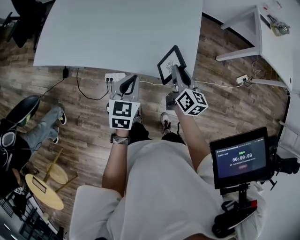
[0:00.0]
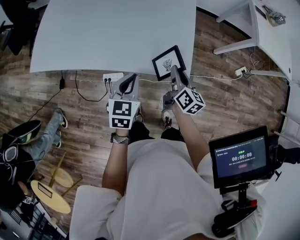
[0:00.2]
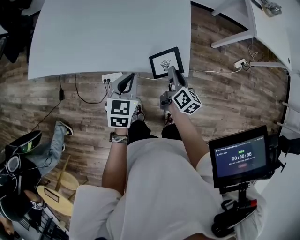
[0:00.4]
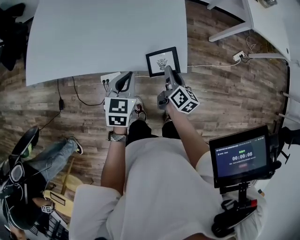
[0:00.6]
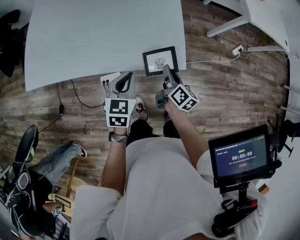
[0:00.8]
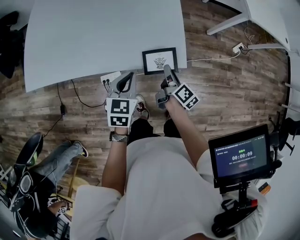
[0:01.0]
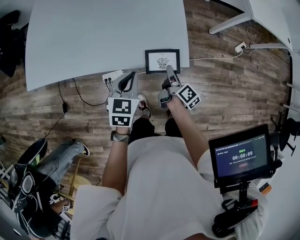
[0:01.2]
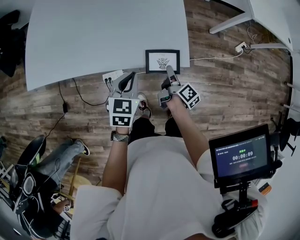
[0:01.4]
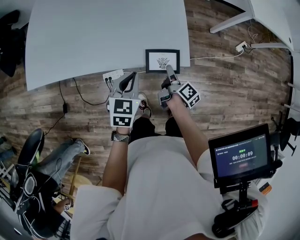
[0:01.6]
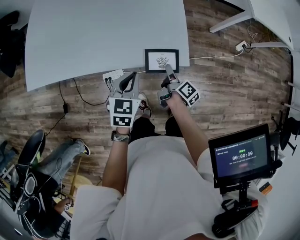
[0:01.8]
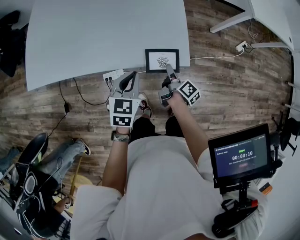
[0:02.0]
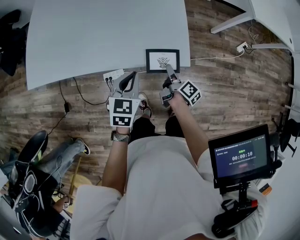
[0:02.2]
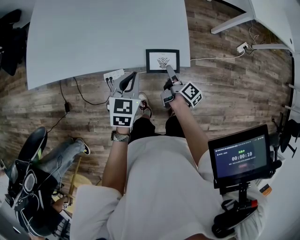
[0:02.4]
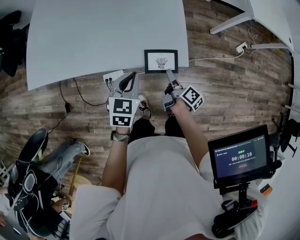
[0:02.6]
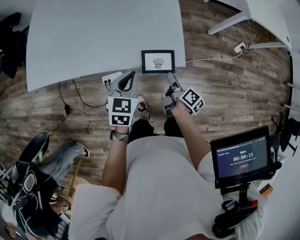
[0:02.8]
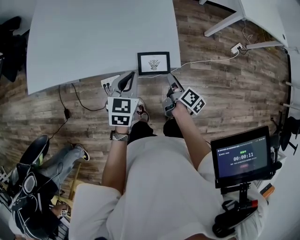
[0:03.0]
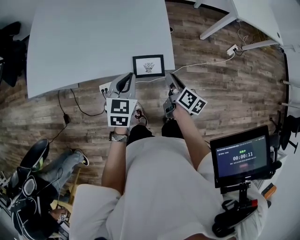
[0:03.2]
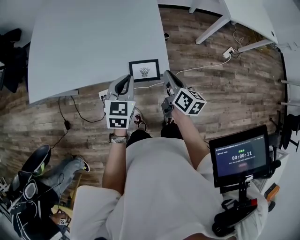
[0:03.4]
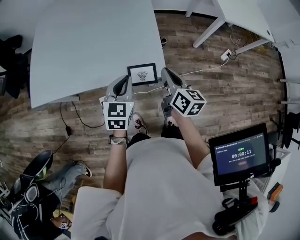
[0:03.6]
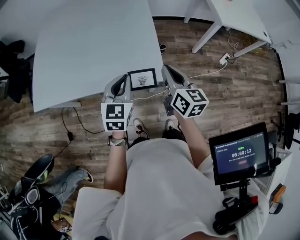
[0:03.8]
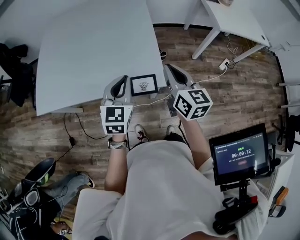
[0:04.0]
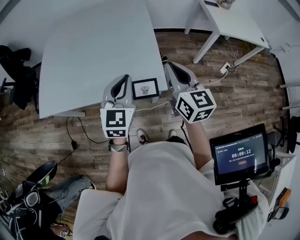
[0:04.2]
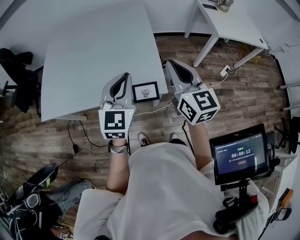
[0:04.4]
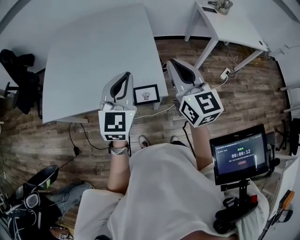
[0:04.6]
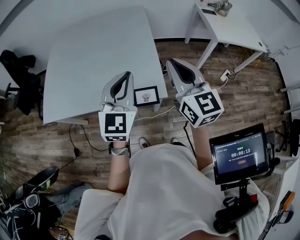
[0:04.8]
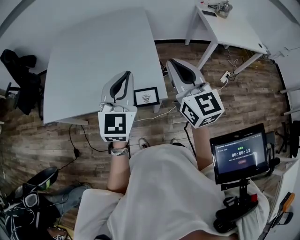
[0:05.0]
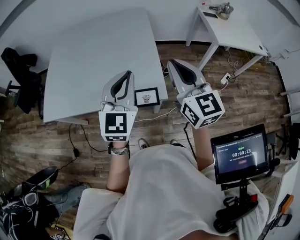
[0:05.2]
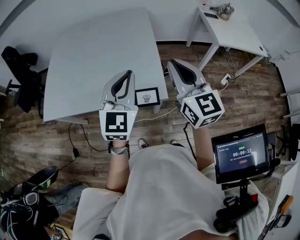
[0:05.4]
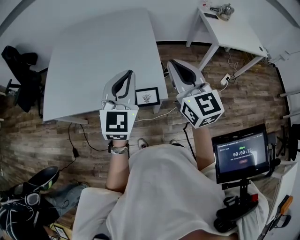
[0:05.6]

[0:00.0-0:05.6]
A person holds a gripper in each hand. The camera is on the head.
0:00.0 to 0:01.4: The right gripper shifts approximately 15 cm downward and backward, and rotates around the line of its fingers by roughly 50 degrees, clockwise from behind.
0:01.4 to 0:02.8: The right gripper opens.
0:02.8 to 0:04.2: The right gripper moves upward, some 35 cm, twists roughly 60 degrees counterclockwise, seen from behind, and closes. Meanwhile the left gripper goes some 20 cm upward, and swivels about 30 degrees.
0:04.2 to 0:05.6: Both grippers travel together upward, about 5 cm.

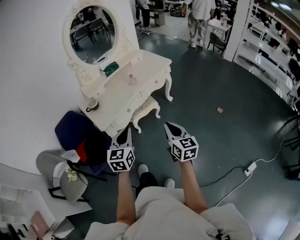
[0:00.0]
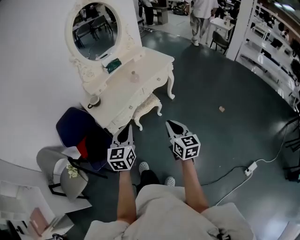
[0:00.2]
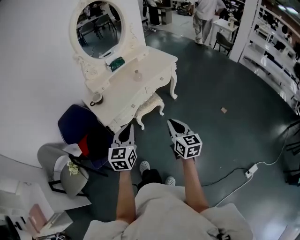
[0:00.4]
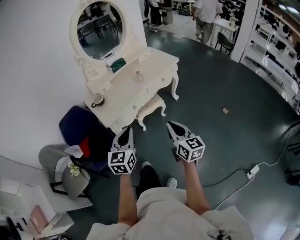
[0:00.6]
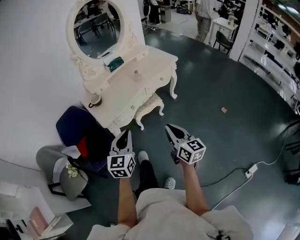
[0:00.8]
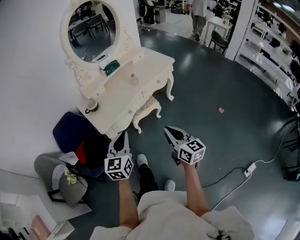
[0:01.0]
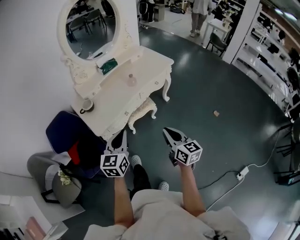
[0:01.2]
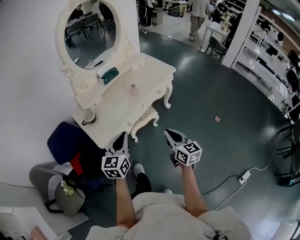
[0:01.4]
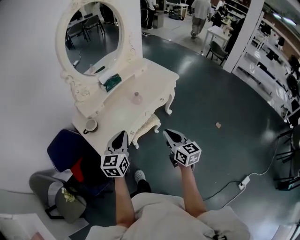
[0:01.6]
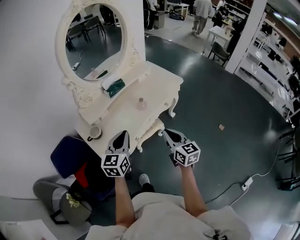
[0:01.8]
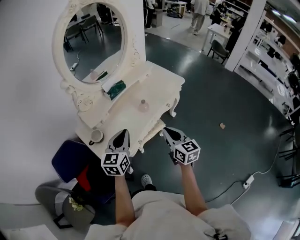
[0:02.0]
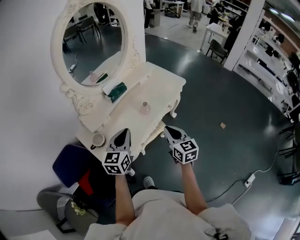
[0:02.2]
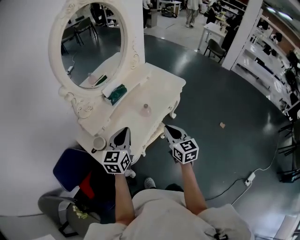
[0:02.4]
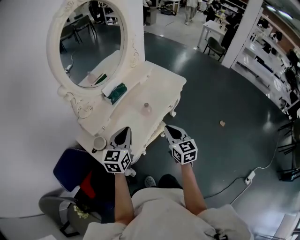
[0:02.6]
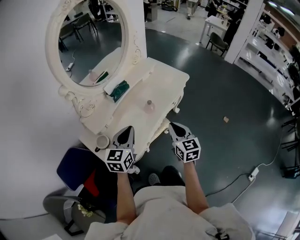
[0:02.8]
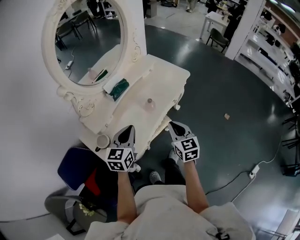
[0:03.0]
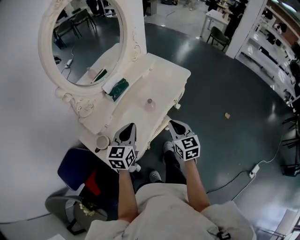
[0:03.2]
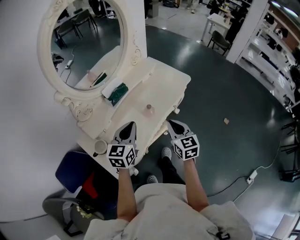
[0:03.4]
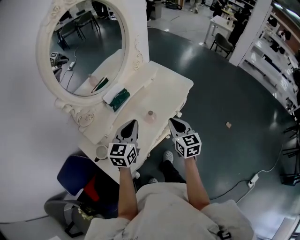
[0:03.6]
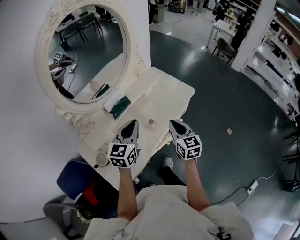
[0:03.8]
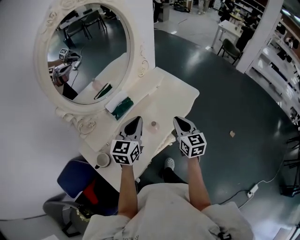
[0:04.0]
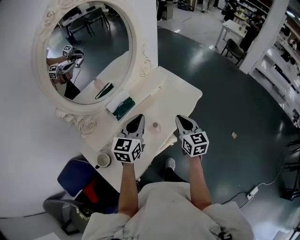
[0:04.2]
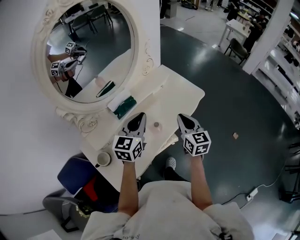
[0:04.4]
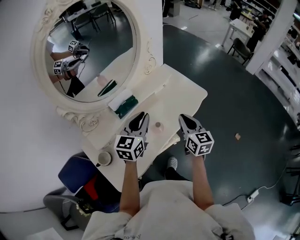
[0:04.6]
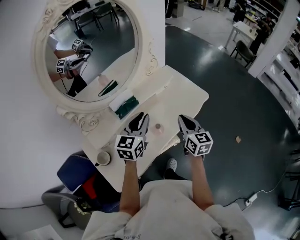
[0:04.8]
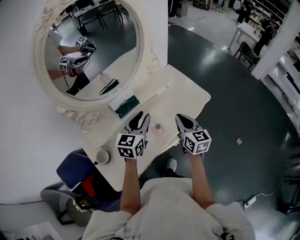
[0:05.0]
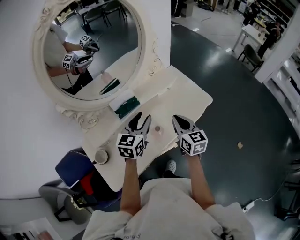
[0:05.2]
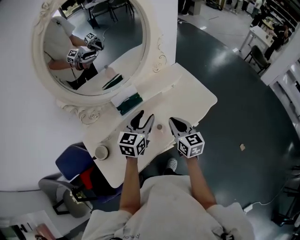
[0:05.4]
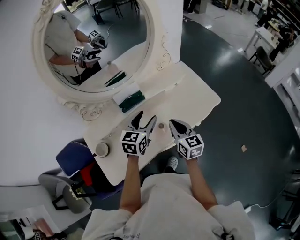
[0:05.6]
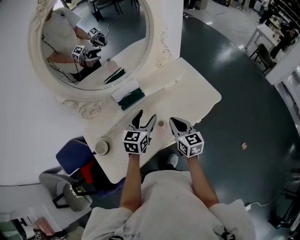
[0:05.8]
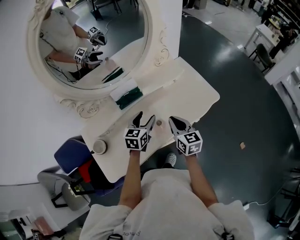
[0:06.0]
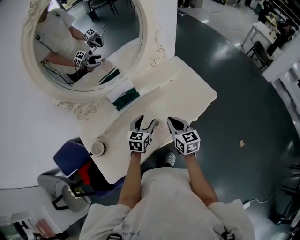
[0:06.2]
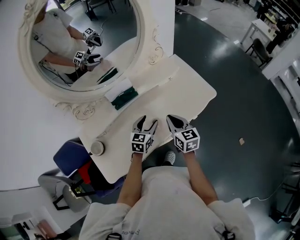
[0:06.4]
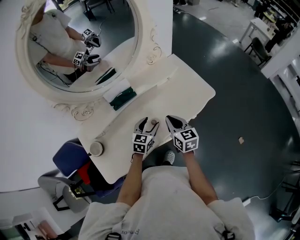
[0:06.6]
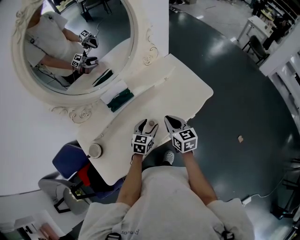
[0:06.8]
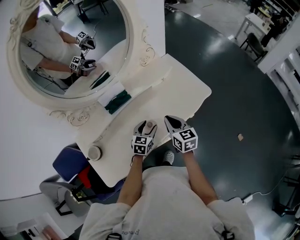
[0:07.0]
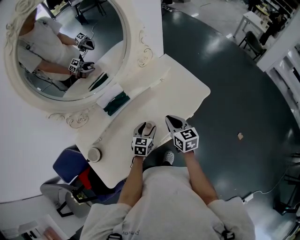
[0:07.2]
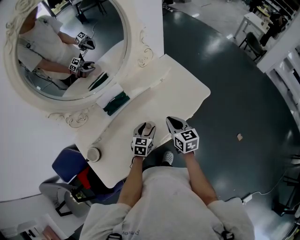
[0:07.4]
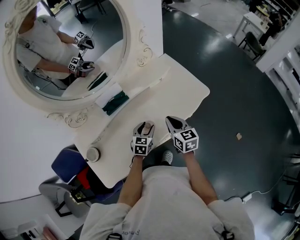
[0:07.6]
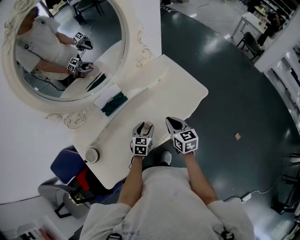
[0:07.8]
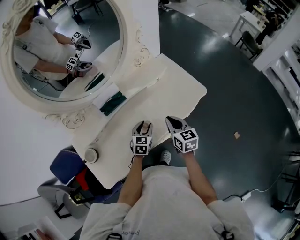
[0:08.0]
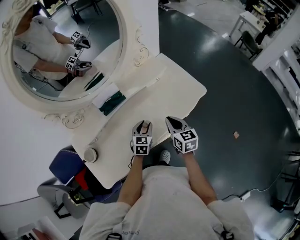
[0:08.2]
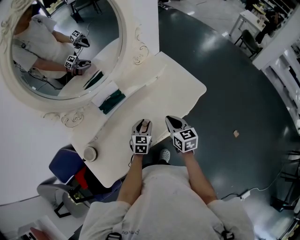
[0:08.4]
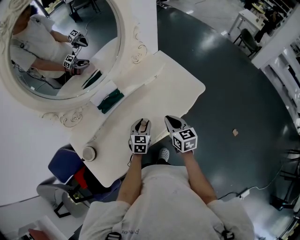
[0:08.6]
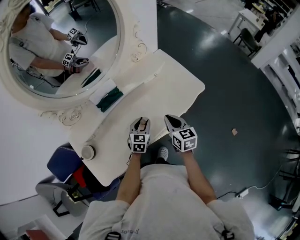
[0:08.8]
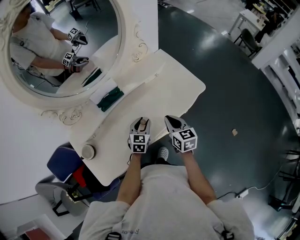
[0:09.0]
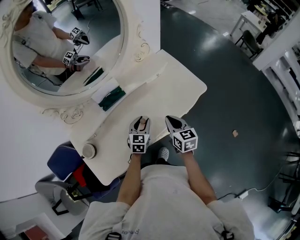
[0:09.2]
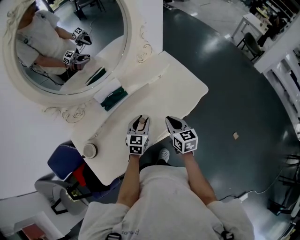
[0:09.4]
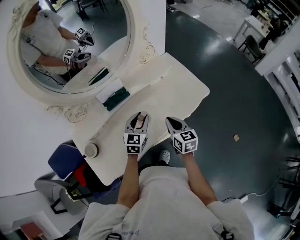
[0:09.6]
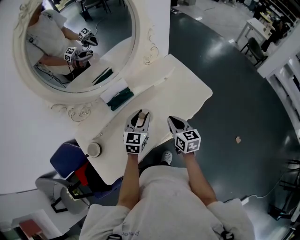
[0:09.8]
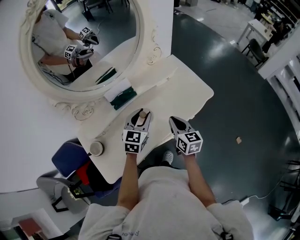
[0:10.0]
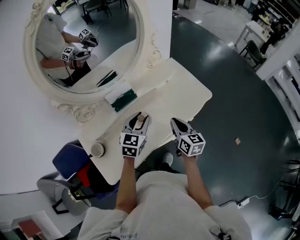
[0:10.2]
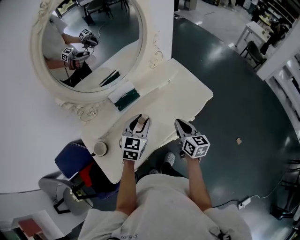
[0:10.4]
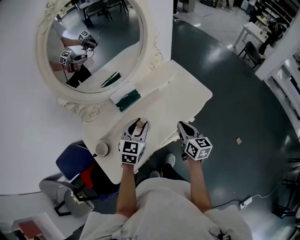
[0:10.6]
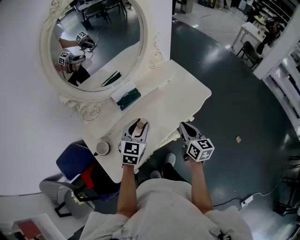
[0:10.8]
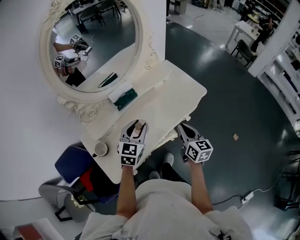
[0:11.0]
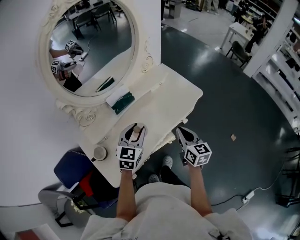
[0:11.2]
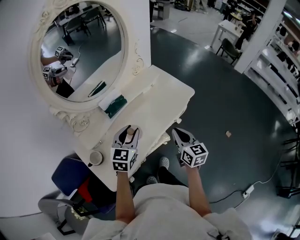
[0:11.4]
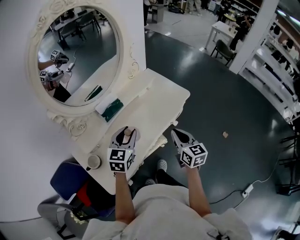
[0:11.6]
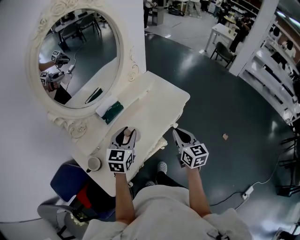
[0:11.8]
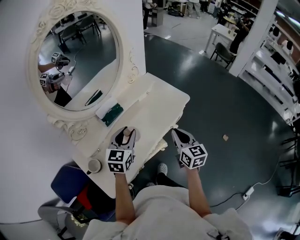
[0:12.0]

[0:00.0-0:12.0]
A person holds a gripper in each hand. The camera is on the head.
0:00.0 to 0:01.6: Both grippers move forward, roughly 20 cm.
0:01.6 to 0:03.0: The right gripper travels forward and to the left by roughly 15 cm, and turns by roughly 20 degrees; the left gripper shifts approximately 15 cm forward.
0:03.0 to 0:04.4: The two grippers go roughly 20 cm forward.
0:04.4 to 0:06.0: The right gripper shifts about 10 cm downward. The left gripper heads downward, covering some 15 cm, changes its angle by about 20 degrees, and opens up.
0:06.0 to 0:07.6: The left gripper moves downward and to the right, some 15 cm; the right gripper ends up some 5 cm from where it was.
0:07.6 to 0:09.0: The grippers stay close to where they were, moving slightly.
0:09.0 to 0:10.4: The left gripper travels upward by about 20 cm. The right gripper goes some 5 cm upward.
0:10.4 to 0:12.0: The right gripper goes approximately 10 cm backward and upward. Meanwhile the left gripper heads upward, covering approximately 5 cm.

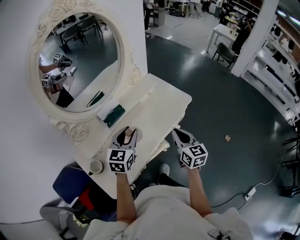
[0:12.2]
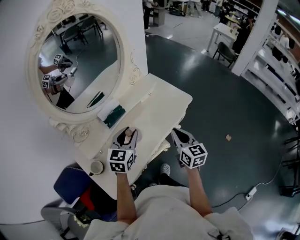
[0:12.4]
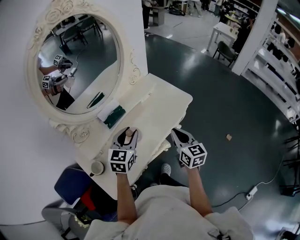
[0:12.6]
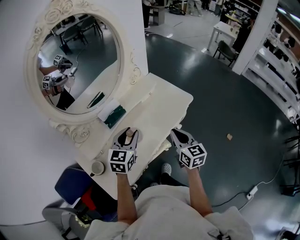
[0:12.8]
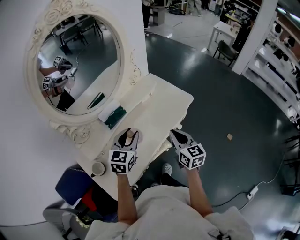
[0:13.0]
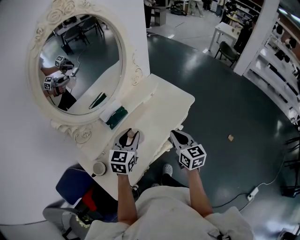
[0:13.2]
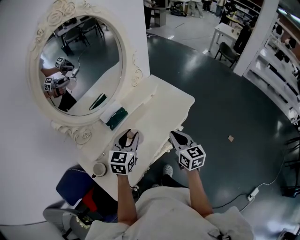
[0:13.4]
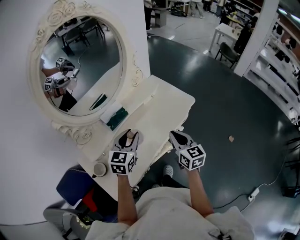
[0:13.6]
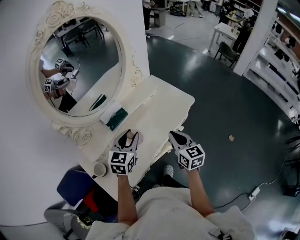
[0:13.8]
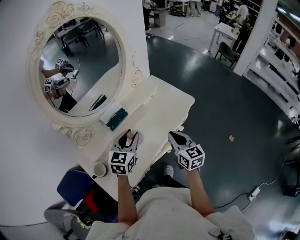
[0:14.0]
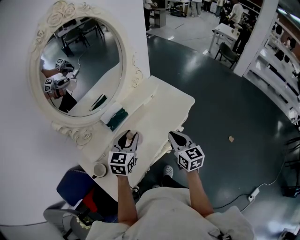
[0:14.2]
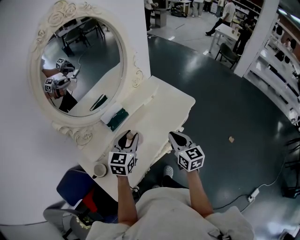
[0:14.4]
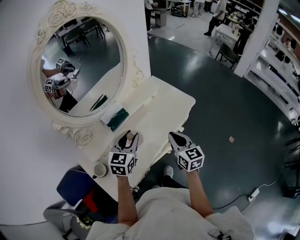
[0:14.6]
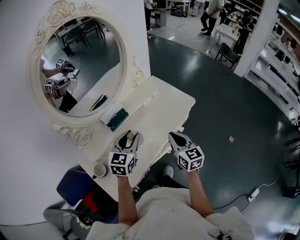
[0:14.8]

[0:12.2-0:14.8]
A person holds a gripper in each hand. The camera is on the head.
0:12.2 to 0:13.4: The grippers make only small movements.
0:13.4 to 0:14.8: The two grippers keep their place.

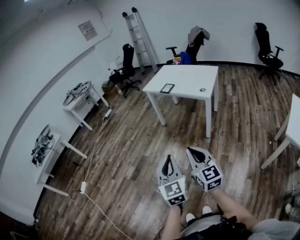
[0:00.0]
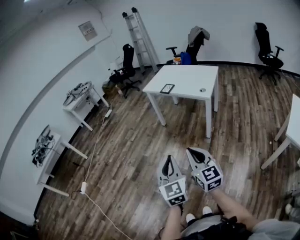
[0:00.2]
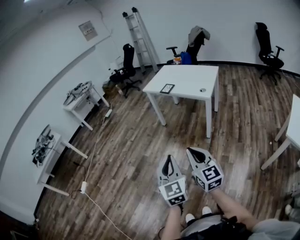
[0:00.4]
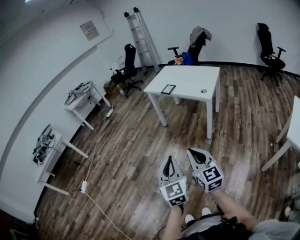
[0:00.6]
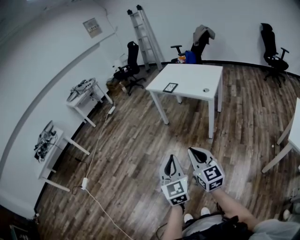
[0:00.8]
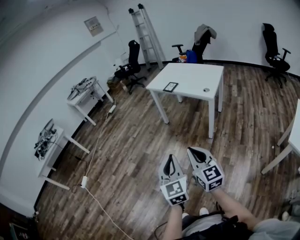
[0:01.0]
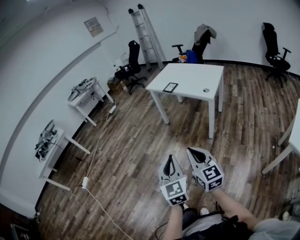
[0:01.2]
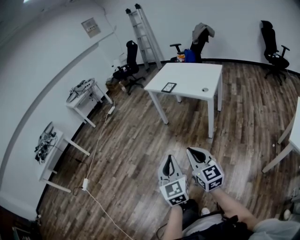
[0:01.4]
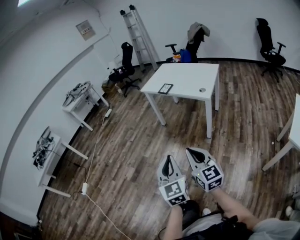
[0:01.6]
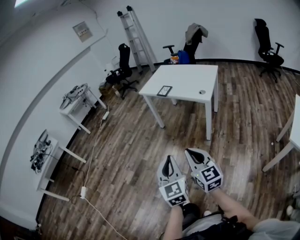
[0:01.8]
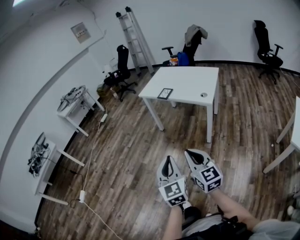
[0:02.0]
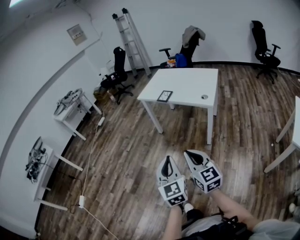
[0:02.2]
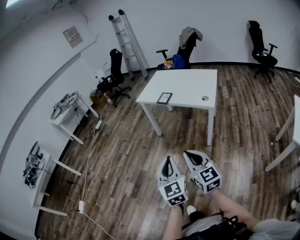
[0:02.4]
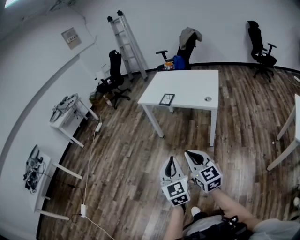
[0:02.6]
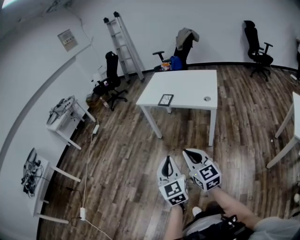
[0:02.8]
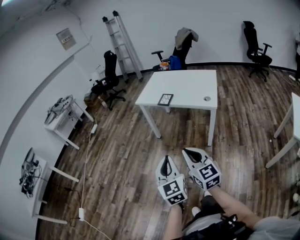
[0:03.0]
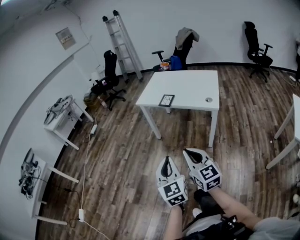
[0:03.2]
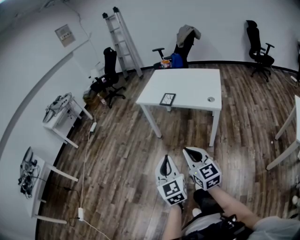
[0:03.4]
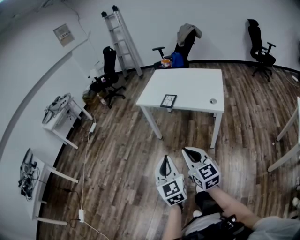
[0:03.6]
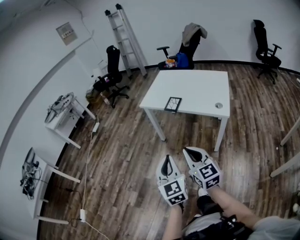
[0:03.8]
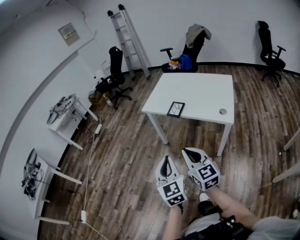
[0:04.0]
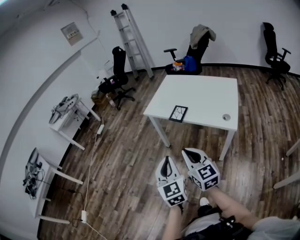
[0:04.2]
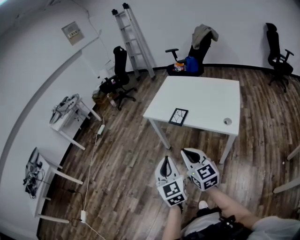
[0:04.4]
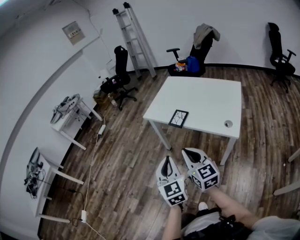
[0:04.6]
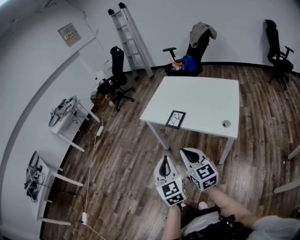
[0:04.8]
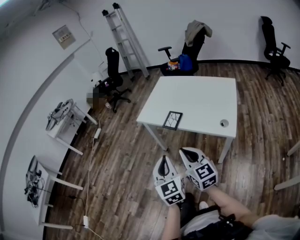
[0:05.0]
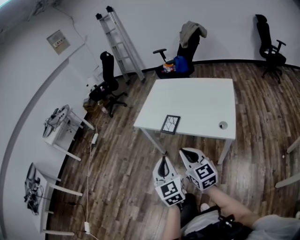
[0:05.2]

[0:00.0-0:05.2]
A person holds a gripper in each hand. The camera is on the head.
0:00.0 to 0:01.8: The two grippers go roughly 10 cm forward.
0:01.8 to 0:03.4: Both grippers travel together forward and to the left, about 25 cm.
0:03.4 to 0:05.2: The two grippers go approximately 30 cm forward and to the right.
